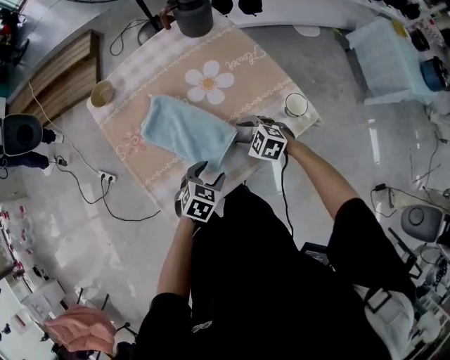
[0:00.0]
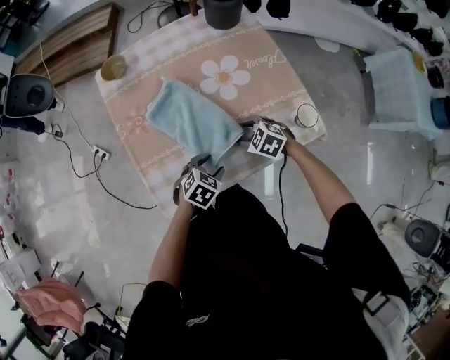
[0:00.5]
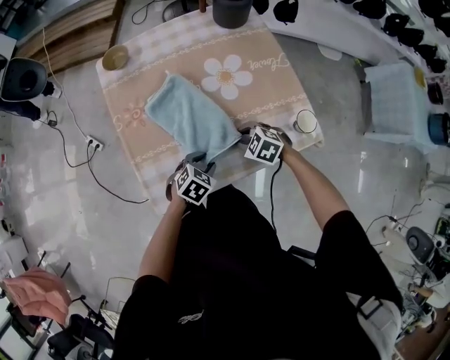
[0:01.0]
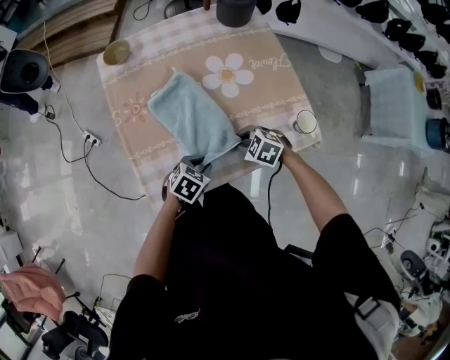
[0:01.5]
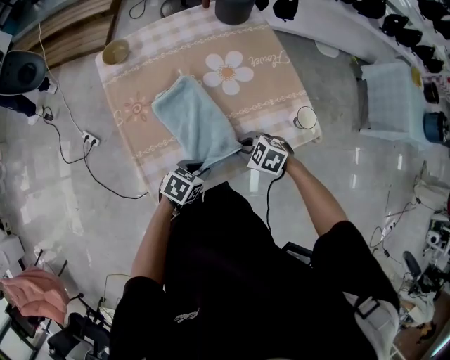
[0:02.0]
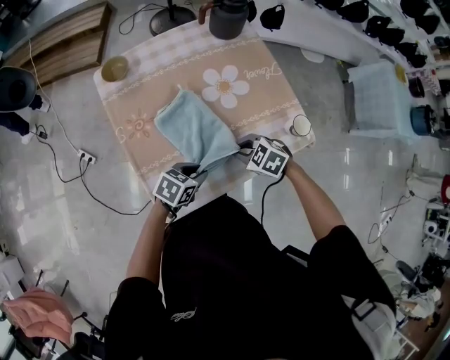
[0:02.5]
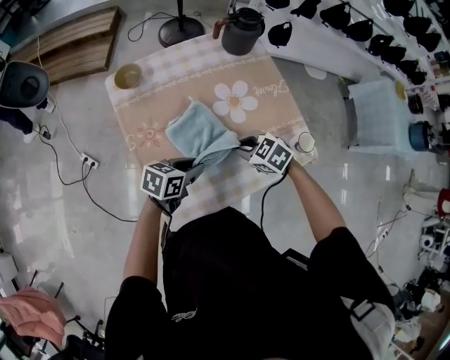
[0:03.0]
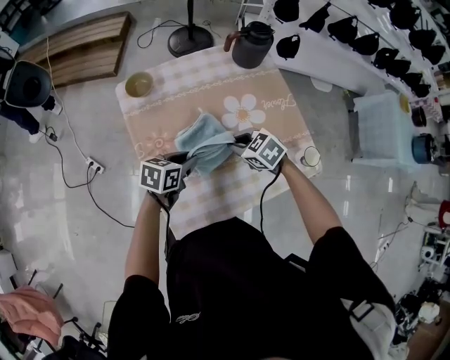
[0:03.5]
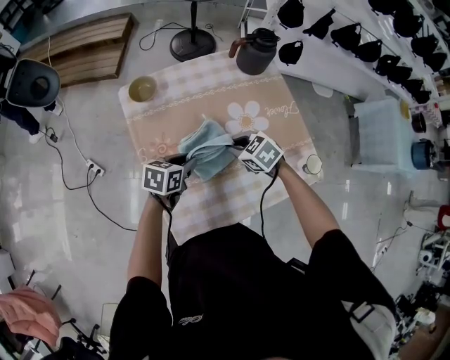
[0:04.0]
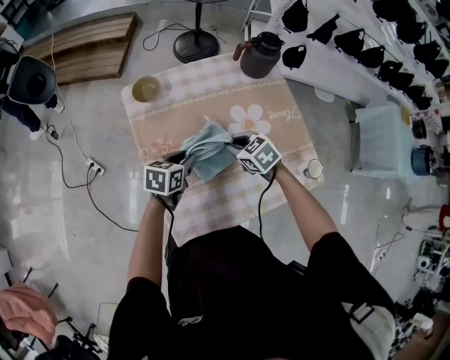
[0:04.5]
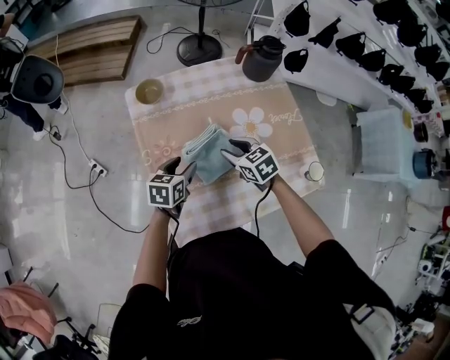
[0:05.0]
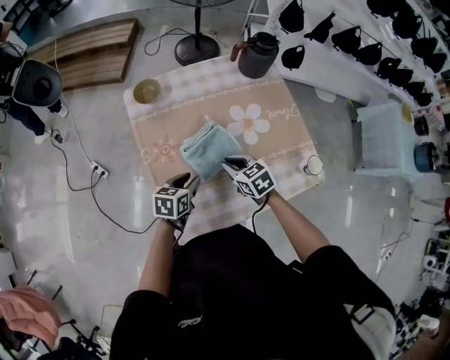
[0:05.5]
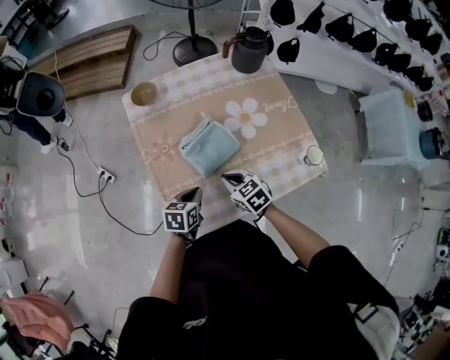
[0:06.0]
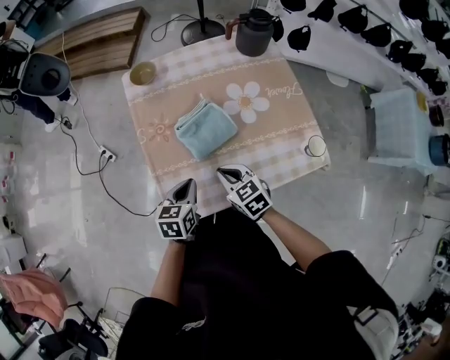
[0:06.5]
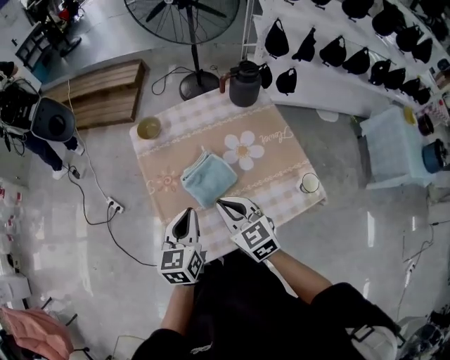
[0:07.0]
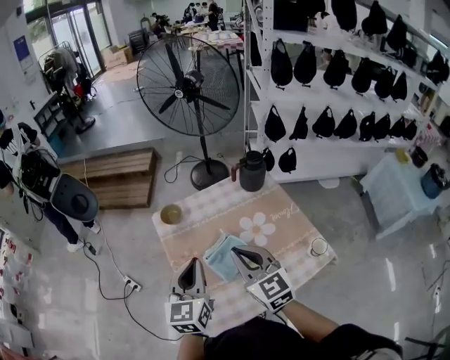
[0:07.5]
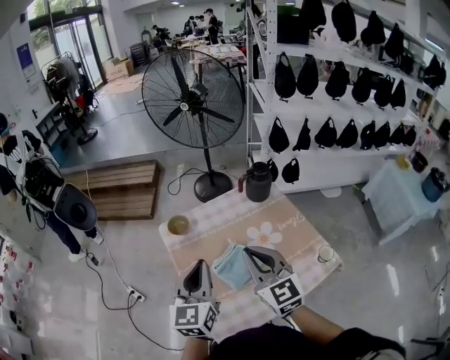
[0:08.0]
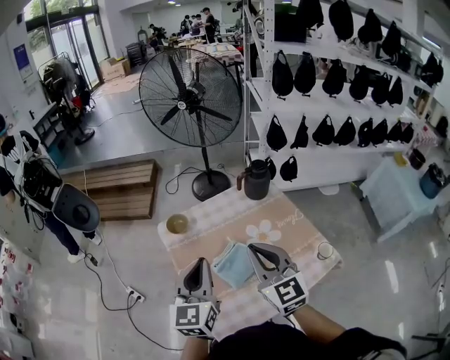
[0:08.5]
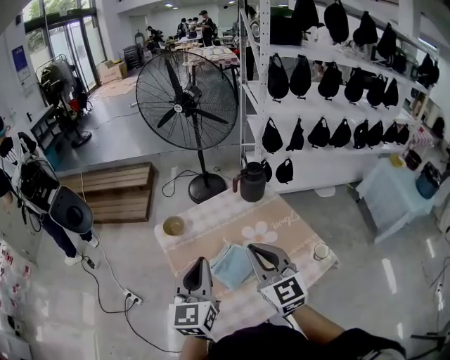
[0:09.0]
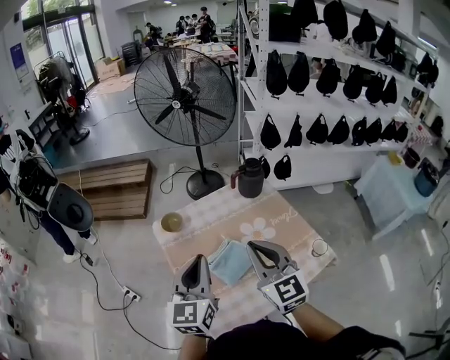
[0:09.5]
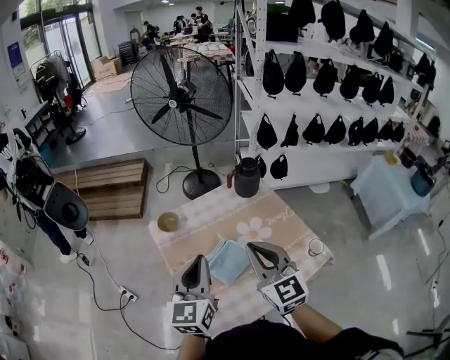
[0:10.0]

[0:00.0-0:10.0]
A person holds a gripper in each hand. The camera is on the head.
0:00.0 to 0:02.0: The right gripper shifts by roughly 5 cm, and closes its fingers. The left gripper rotates roughly 20 degrees, and closes its fingers.
0:02.0 to 0:04.0: The left gripper ends up approximately 25 cm from where it was, and swivels approximately 20 degrees, while the right gripper shifts by some 20 cm.
0:04.0 to 0:06.0: The grippers both shift backward by approximately 10 cm. The right gripper opens and closes again, while the left gripper closes.
0:06.0 to 0:08.0: The two grippers go roughly 35 cm upward. The right gripper tilts its fingers roughly 40 degrees upward. Meanwhile the left gripper tilts its fingers approximately 40 degrees upward.
0:08.0 to 0:10.0: The grippers stay close to where they were, moving slightly.

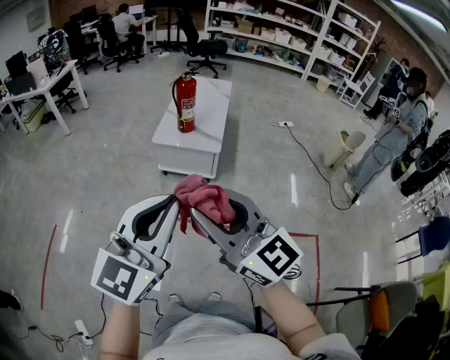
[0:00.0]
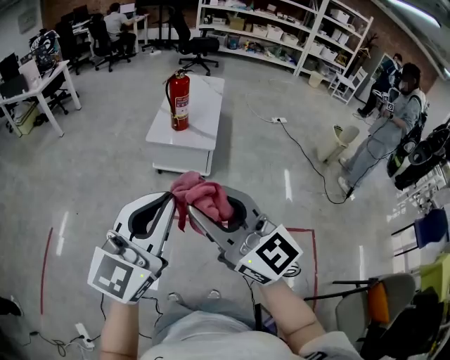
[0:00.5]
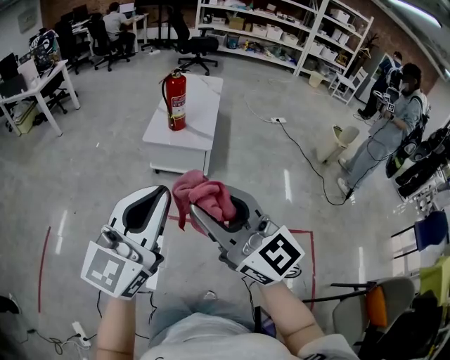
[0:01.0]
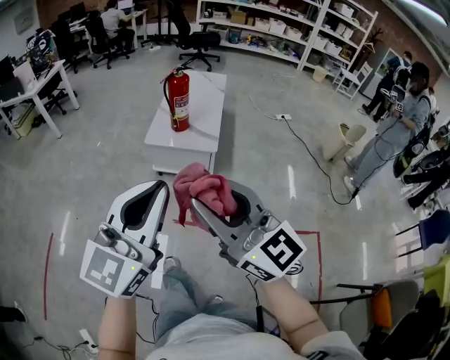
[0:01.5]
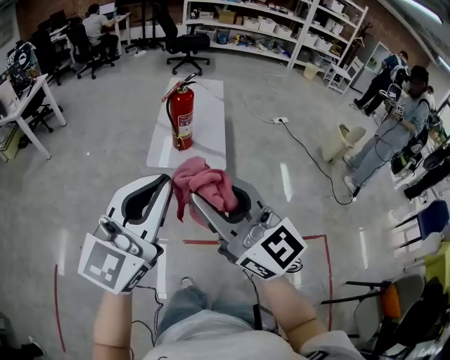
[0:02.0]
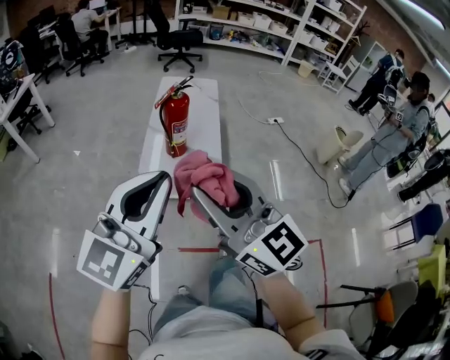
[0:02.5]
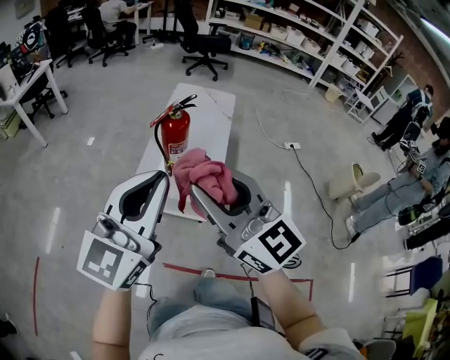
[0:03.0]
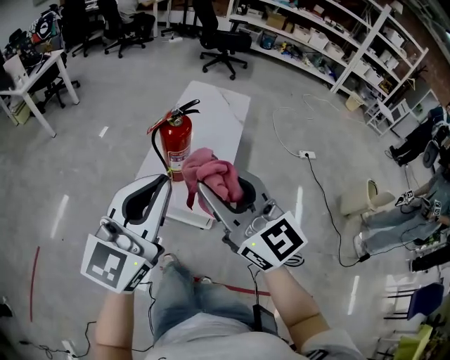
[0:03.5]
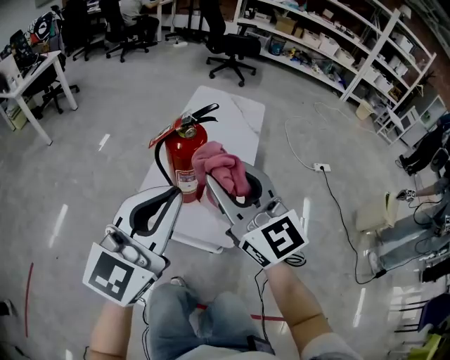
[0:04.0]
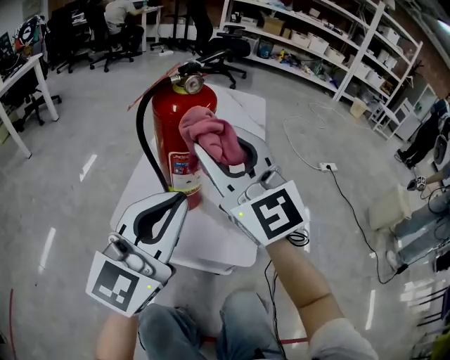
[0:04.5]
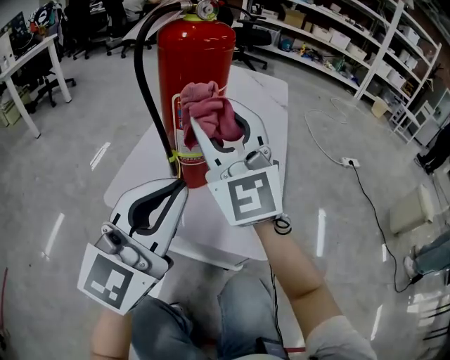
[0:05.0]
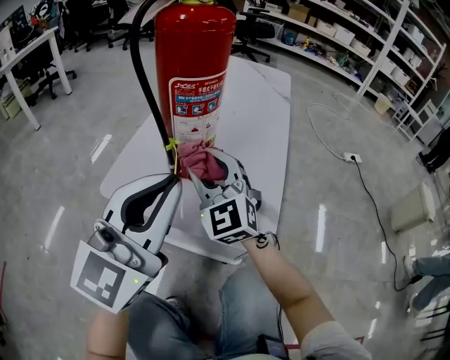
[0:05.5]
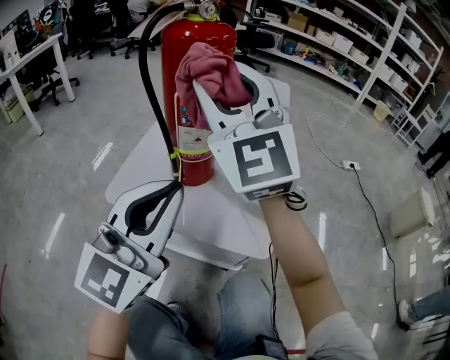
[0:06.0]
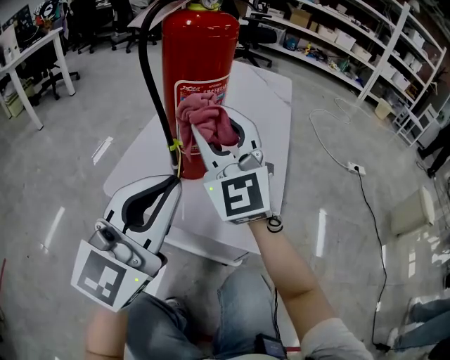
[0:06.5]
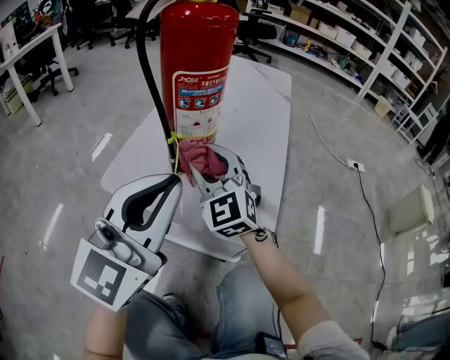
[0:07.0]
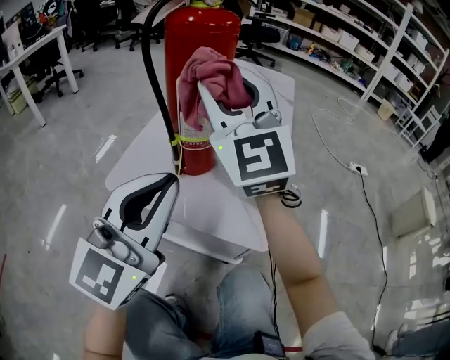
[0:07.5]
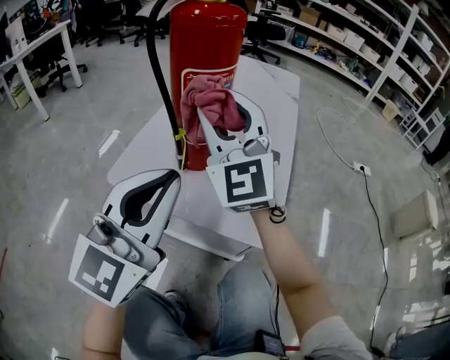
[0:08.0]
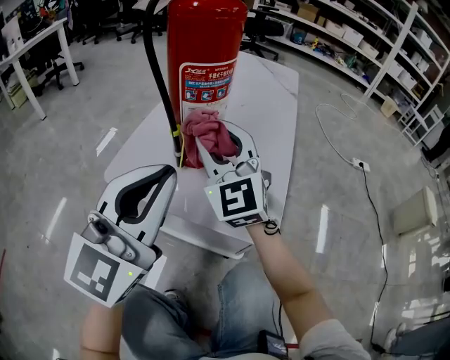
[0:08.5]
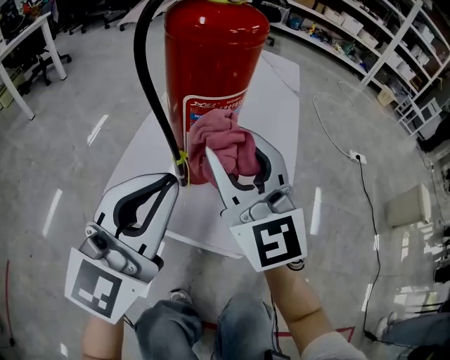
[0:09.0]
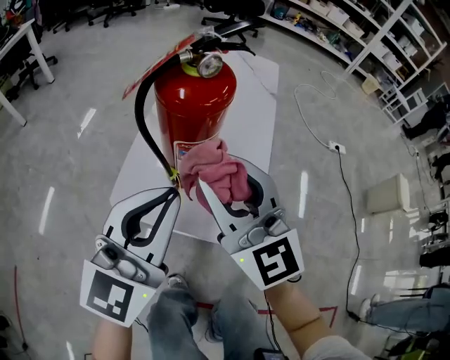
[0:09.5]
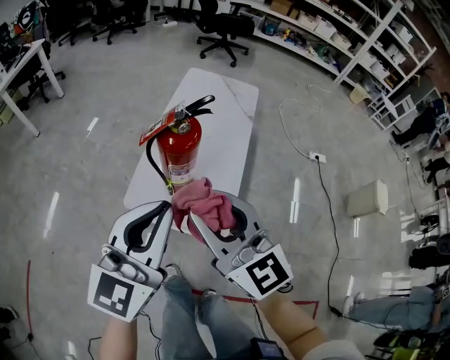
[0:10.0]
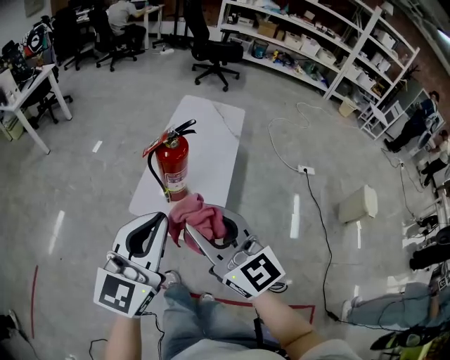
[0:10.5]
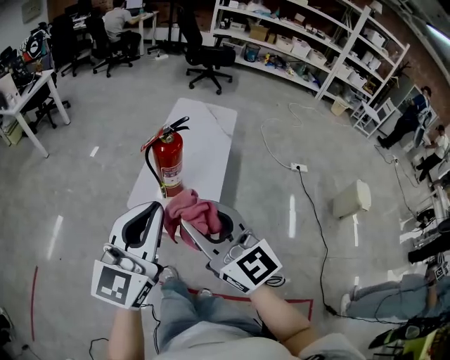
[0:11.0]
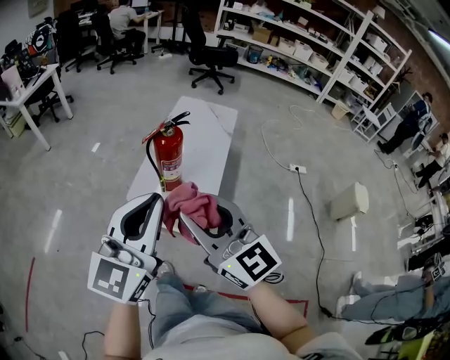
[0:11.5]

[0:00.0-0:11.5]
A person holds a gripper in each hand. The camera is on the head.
0:00.0 to 0:02.0: Both grippers travel together forward, some 30 cm.
0:02.0 to 0:04.0: Both grippers are carried forward, some 50 cm. The left gripper moves downward, roughly 20 cm.
0:04.0 to 0:06.0: The left gripper is displaced downward by about 35 cm. Meanwhile the right gripper goes about 25 cm downward and forward, and rotates approximately 30 degrees.
0:06.0 to 0:07.5: The right gripper reaches roughly 25 cm downward, then returns.
0:07.5 to 0:09.5: The left gripper shifts roughly 15 cm upward and forward. Meanwhile the right gripper moves some 15 cm downward and comes back, and swivels about 20 degrees.
0:09.5 to 0:11.5: The grippers both shift upward and backward by some 40 cm.

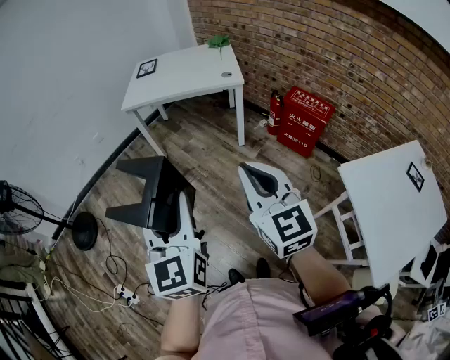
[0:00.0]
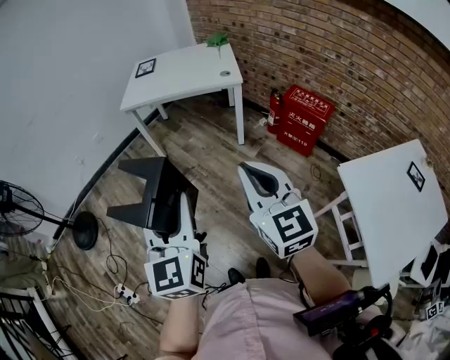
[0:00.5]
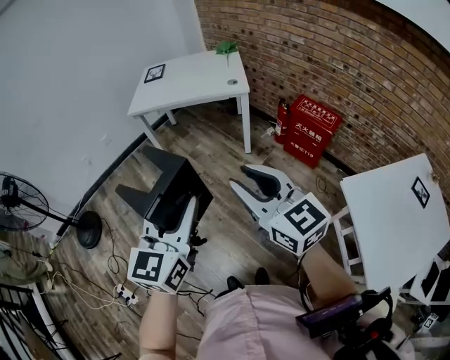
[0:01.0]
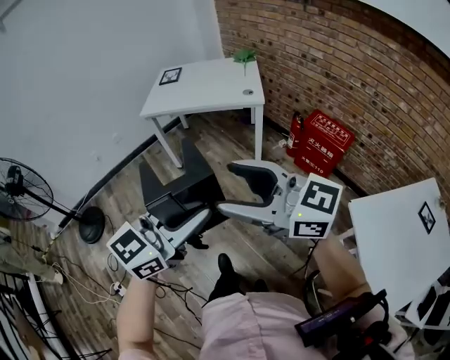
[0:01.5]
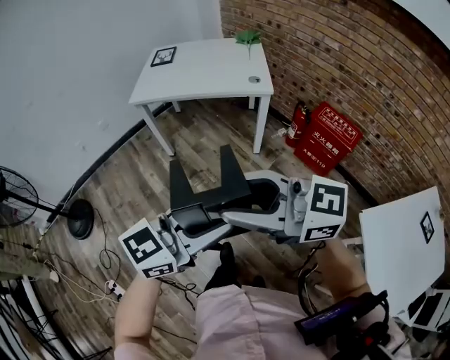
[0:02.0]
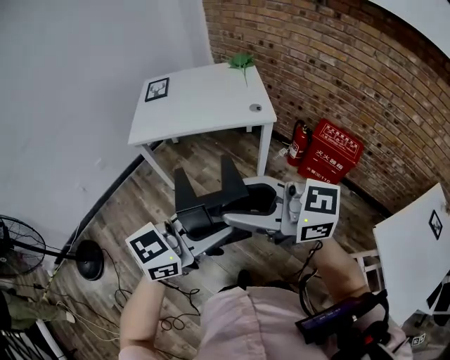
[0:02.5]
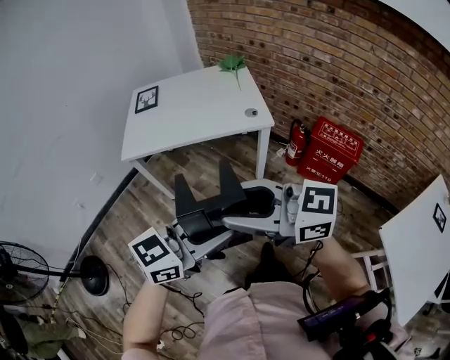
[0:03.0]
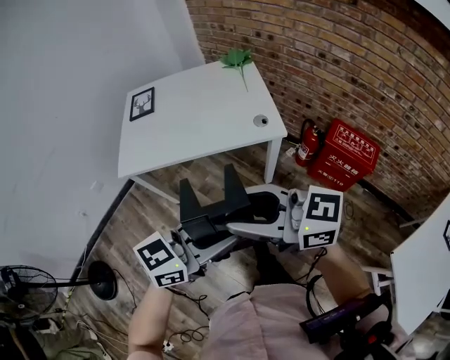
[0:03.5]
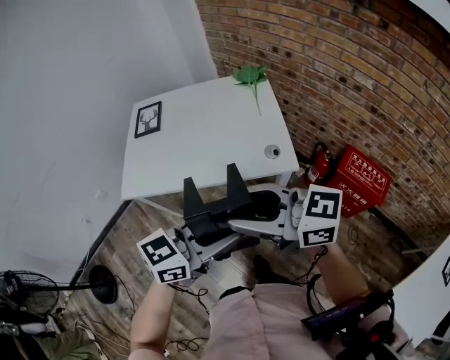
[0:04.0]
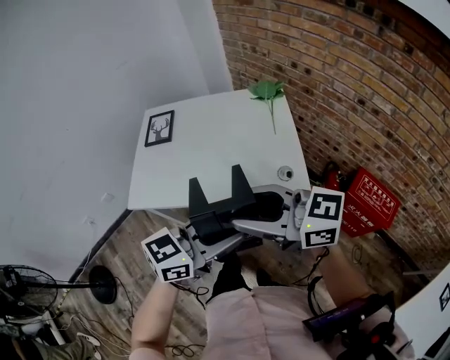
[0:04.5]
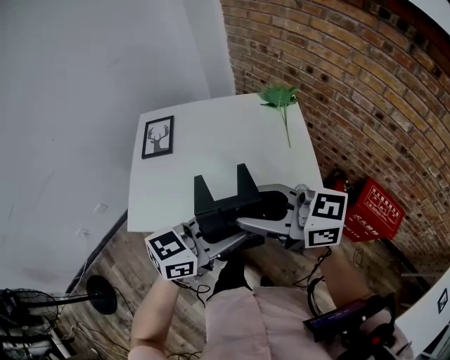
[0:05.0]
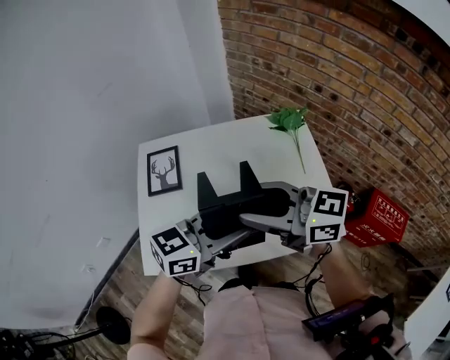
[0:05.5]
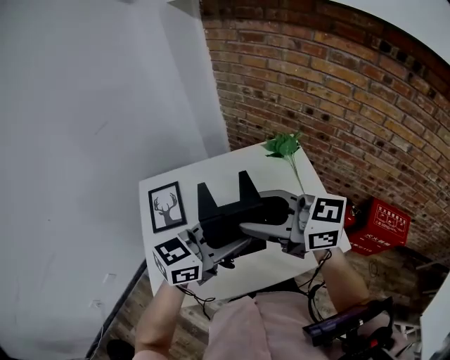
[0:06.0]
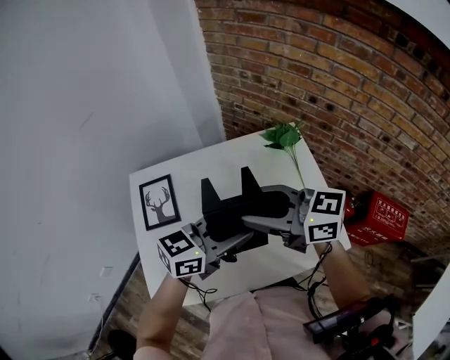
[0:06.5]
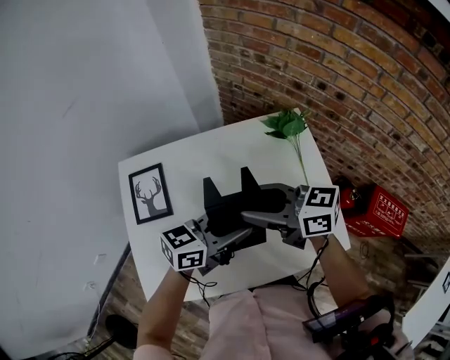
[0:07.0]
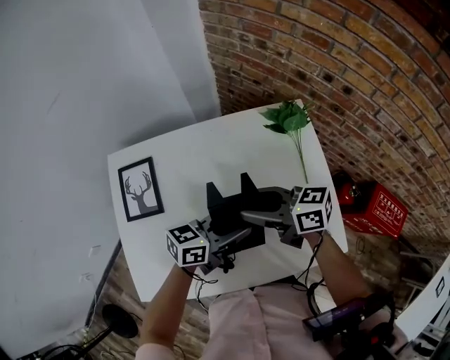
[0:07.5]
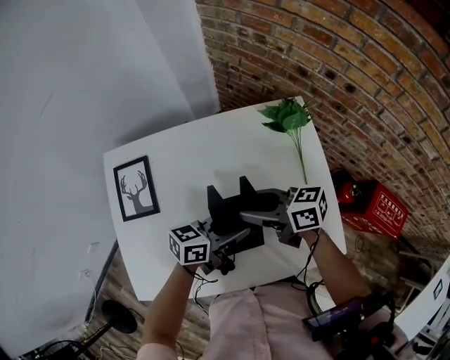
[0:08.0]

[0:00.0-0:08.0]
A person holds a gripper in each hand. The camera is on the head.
0:00.0 to 0:02.0: The right gripper ends up approximately 15 cm from where it was, changes its angle by some 60 degrees, and opens up; the left gripper ends up about 15 cm from where it was, and turns by roughly 60 degrees.
0:02.0 to 0:04.0: Both grippers are carried some 50 cm.
0:04.0 to 0:06.0: The left gripper shifts by roughly 40 cm; the right gripper ends up approximately 40 cm from where it was.
0:06.0 to 0:08.0: Both grippers move downward, approximately 25 cm. The left gripper swivels some 30 degrees; the right gripper rotates some 40 degrees.
